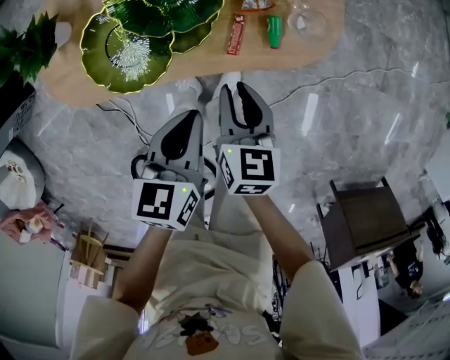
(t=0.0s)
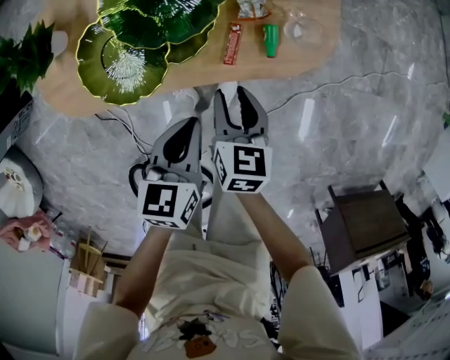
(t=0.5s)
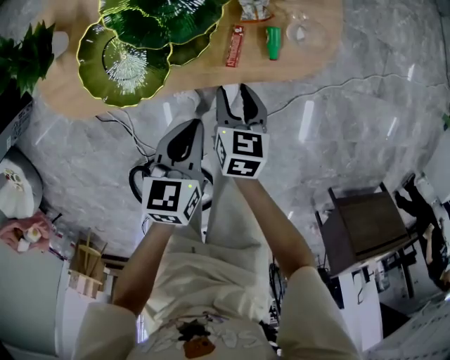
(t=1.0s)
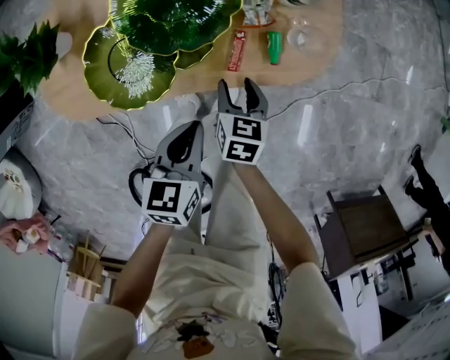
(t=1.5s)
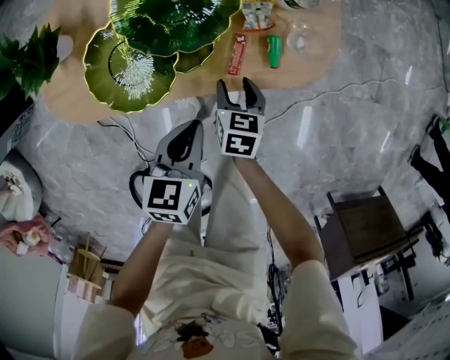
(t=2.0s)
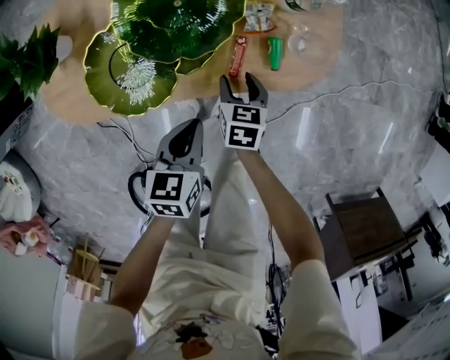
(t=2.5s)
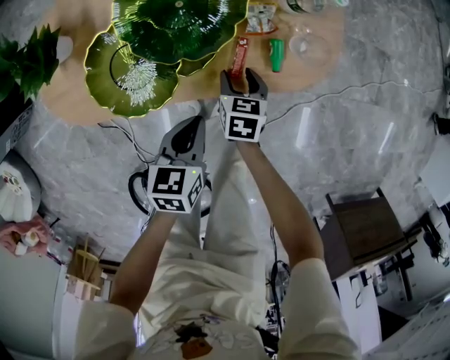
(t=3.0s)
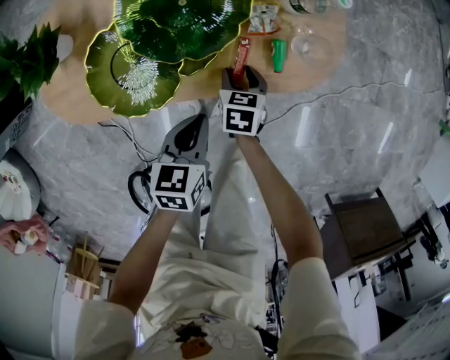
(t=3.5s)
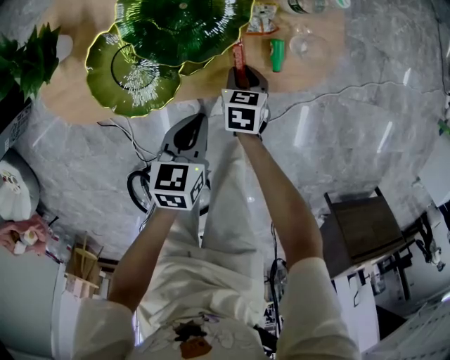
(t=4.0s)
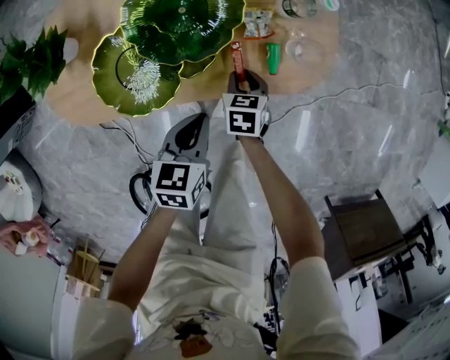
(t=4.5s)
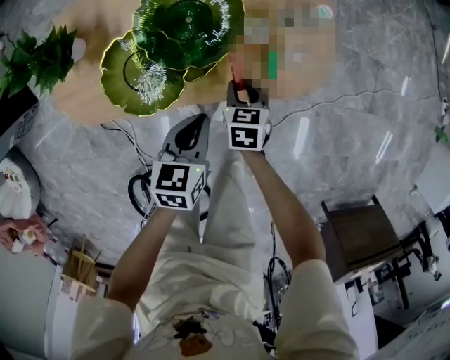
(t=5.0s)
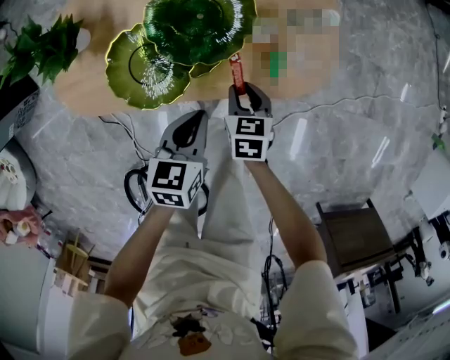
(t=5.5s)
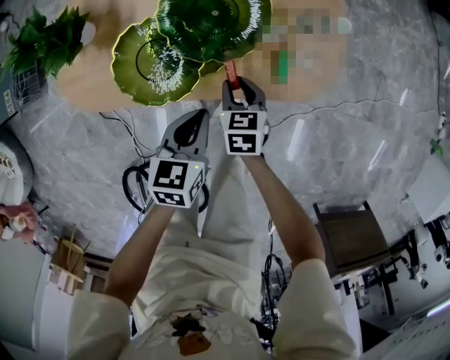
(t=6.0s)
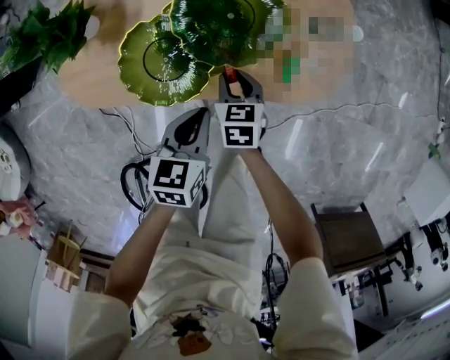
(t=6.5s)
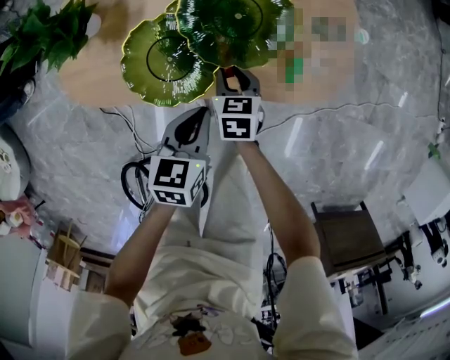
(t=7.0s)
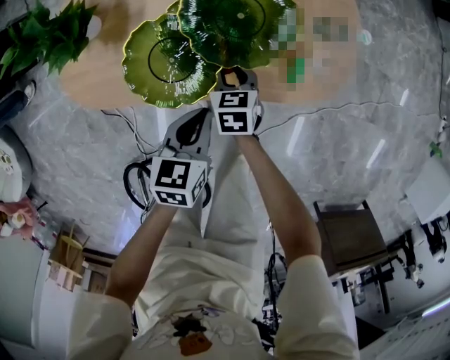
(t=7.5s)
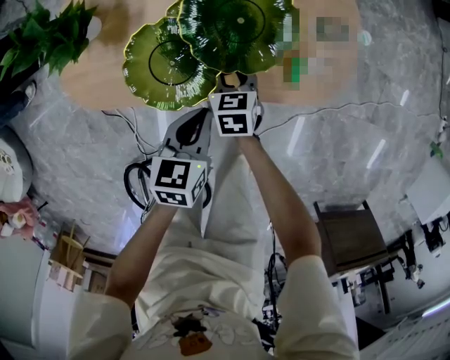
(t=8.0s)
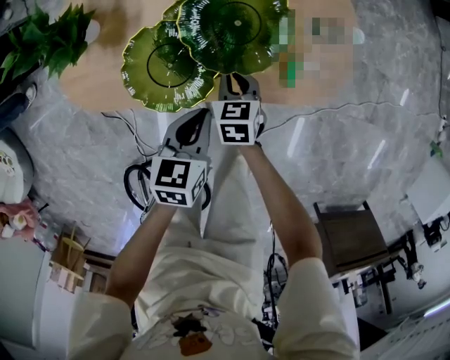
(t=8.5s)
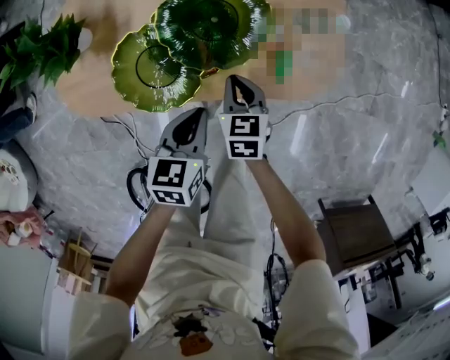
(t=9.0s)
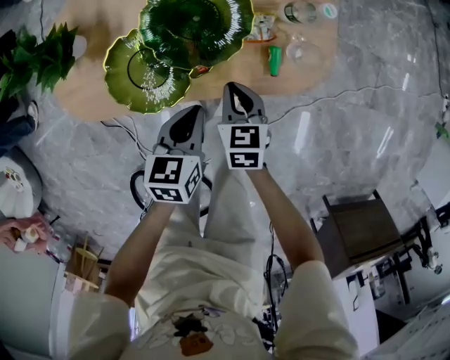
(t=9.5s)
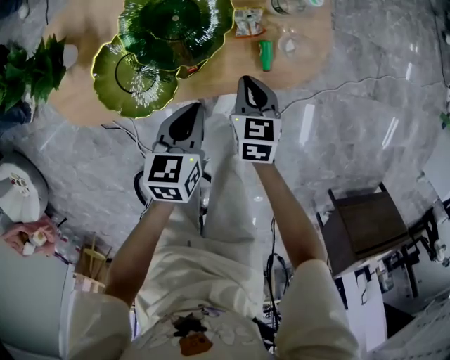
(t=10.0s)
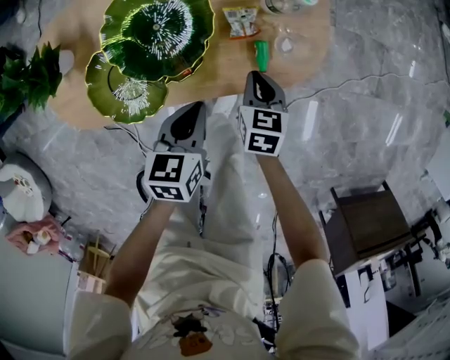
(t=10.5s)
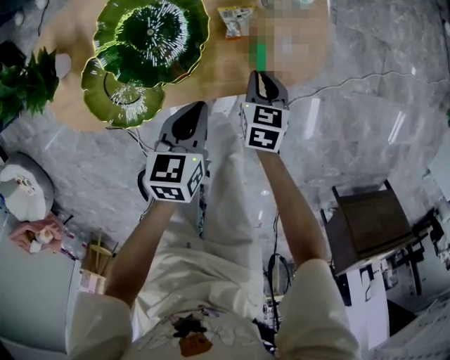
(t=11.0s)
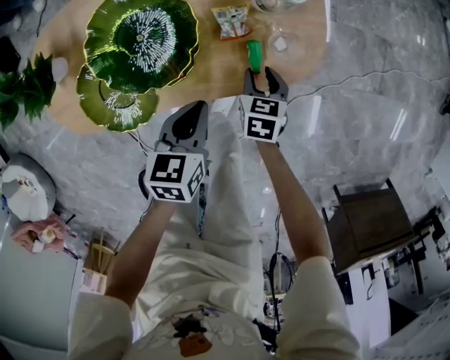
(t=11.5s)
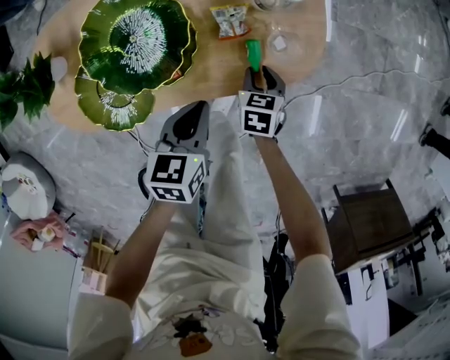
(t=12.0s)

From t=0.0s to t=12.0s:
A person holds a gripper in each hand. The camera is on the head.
From t=0.0s to t=2.0s: The right gripper shifts approximately 15 cm downward, and opens its fingers. Meanwhile the left gripper is displaced downward by roughly 5 cm.
From t=2.0s to t=4.0s: The right gripper shifts by some 5 cm, and closes.
From t=4.0s to t=6.0s: The left gripper shifts roughly 5 cm upward. Meanwhile the right gripper goes some 10 cm upward and to the left.
From t=6.0s to t=8.0s: The right gripper shifts about 5 cm to the left.
From t=8.0s to t=10.0s: The left gripper travels to the right by about 5 cm. The right gripper moves to the right, approximately 15 cm, and closes its fingers.
From t=10.0s to t=12.0s: The right gripper is displaced downward and to the right by approximately 15 cm, and opens. The left gripper is displaced to the right by approximately 5 cm.

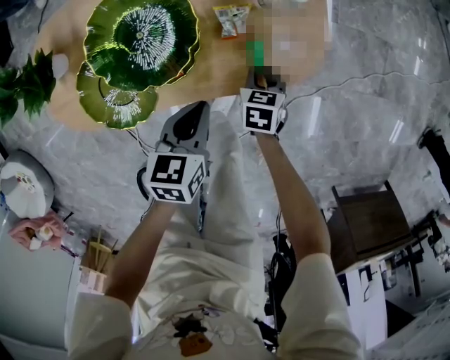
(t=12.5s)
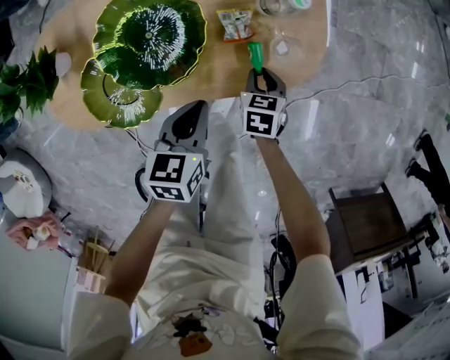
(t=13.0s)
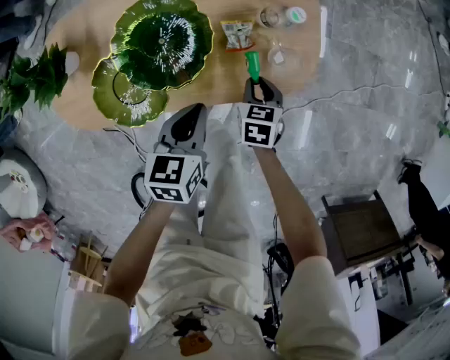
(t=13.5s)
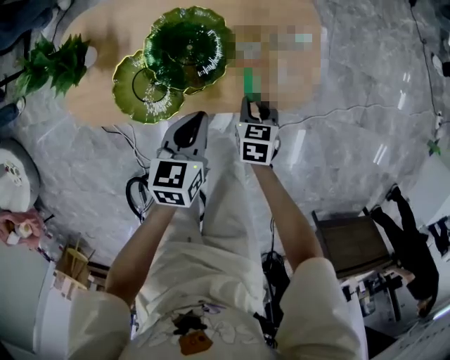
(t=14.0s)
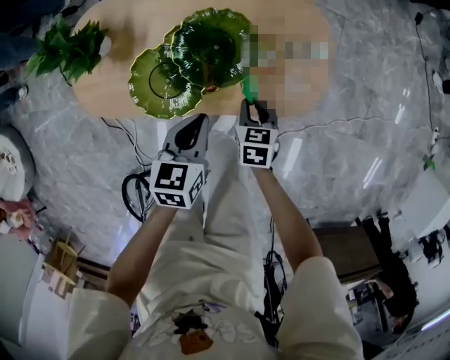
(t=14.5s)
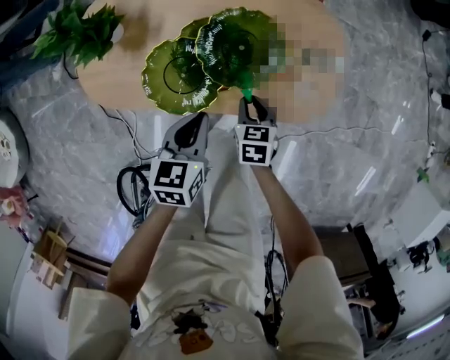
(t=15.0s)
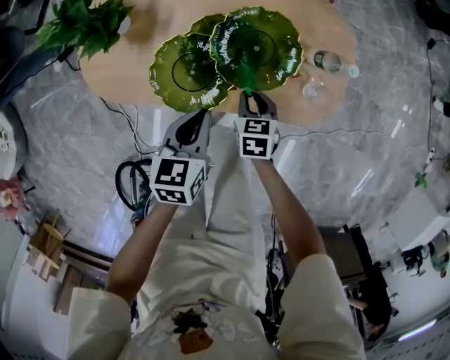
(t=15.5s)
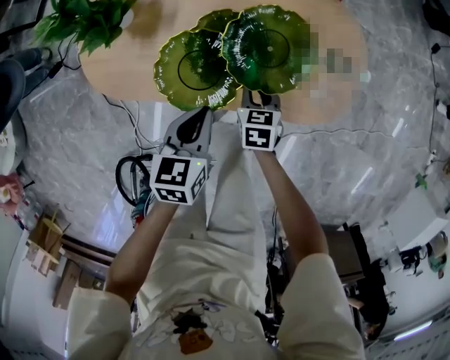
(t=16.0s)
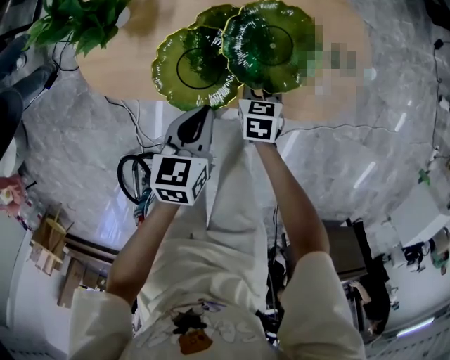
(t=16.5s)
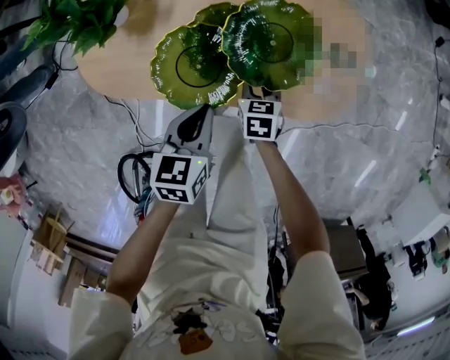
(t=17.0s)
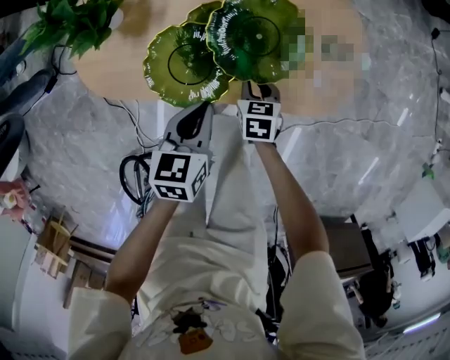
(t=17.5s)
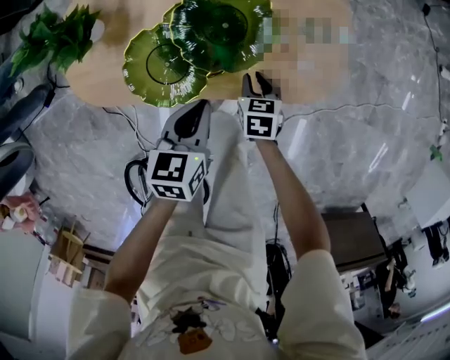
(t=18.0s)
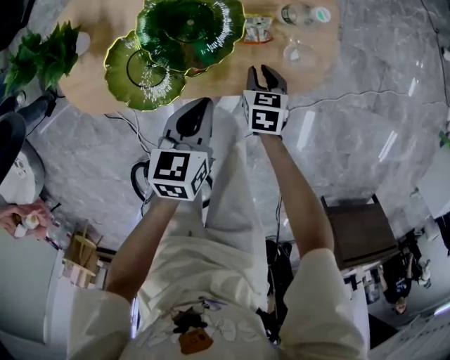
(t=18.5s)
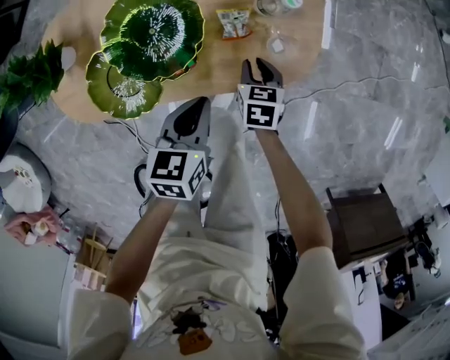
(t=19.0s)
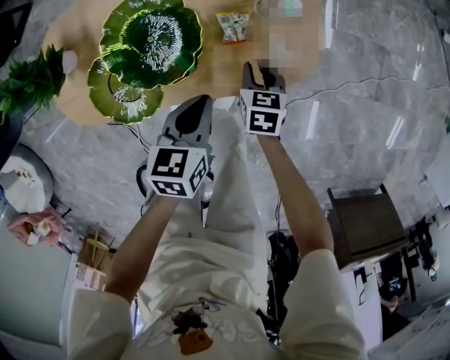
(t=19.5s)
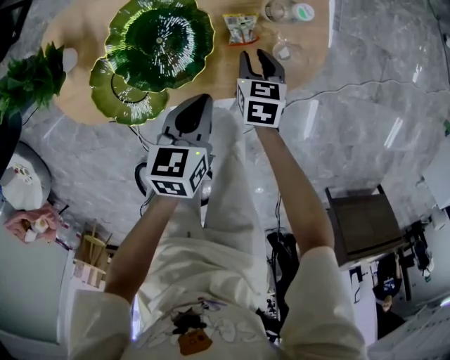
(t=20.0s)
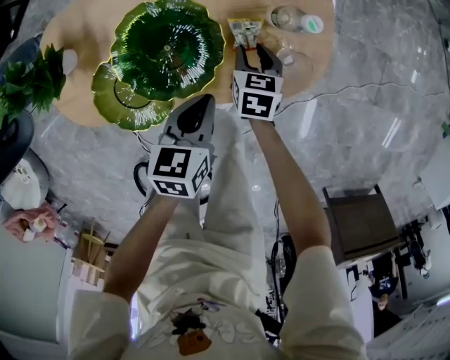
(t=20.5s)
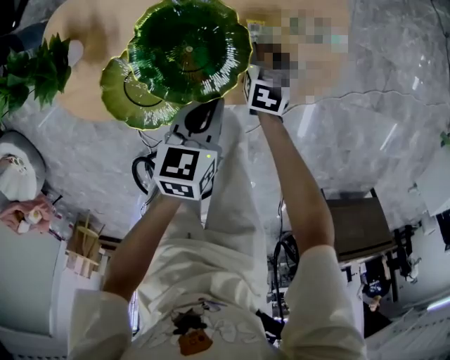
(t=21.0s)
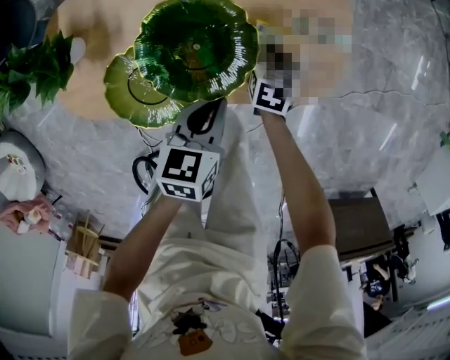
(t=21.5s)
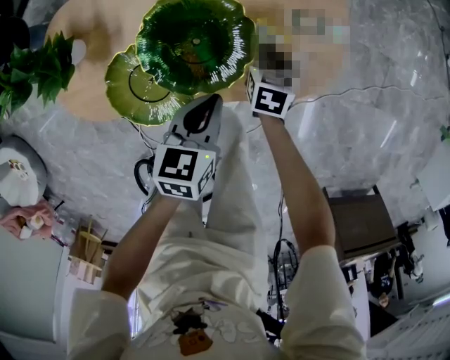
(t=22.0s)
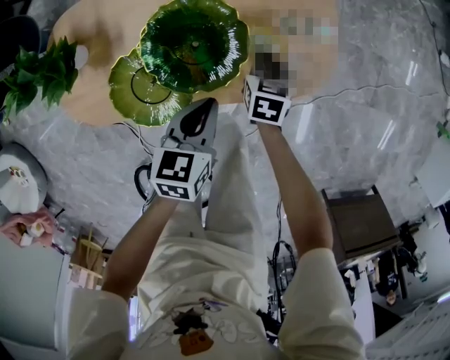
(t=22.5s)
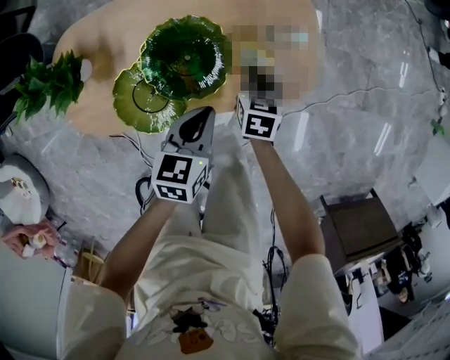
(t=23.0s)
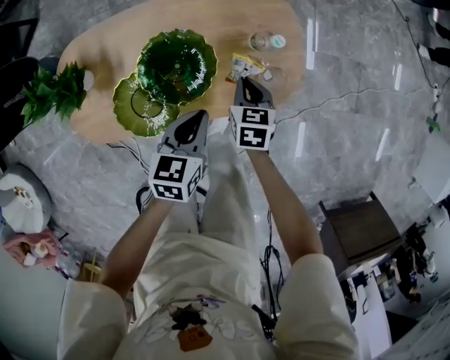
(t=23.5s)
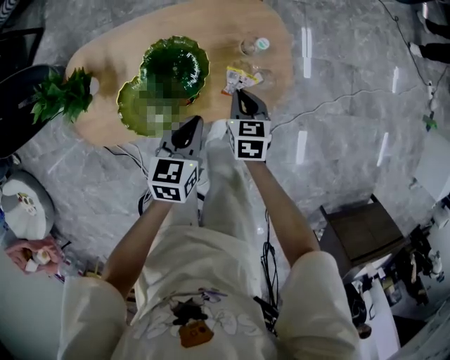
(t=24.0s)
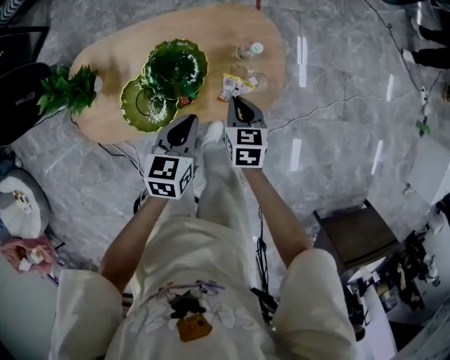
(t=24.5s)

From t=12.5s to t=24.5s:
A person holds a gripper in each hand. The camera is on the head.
From t=12.5s to t=14.5s: The grippers both shift upward and to the left by approximately 15 cm.
From t=14.5s to t=16.5s: The left gripper travels to the left by about 10 cm. Meanwhile the right gripper shifts some 10 cm to the left and downward.
From t=16.5s to t=18.5s: Both grippers move to the right, some 10 cm.
From t=18.5s to t=20.5s: The right gripper travels forward by roughly 10 cm; the left gripper shifts by approximately 5 cm.
From t=20.5s to t=22.5s: The right gripper closes up.
From t=22.5s to t=24.5s: Both grippers travel together upward, approximately 15 cm.

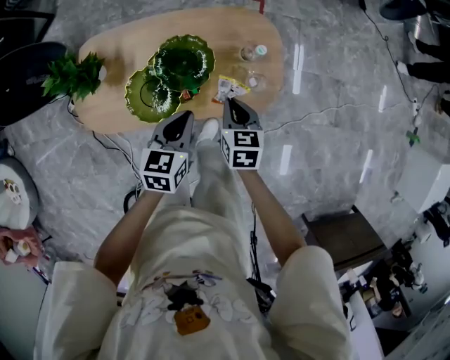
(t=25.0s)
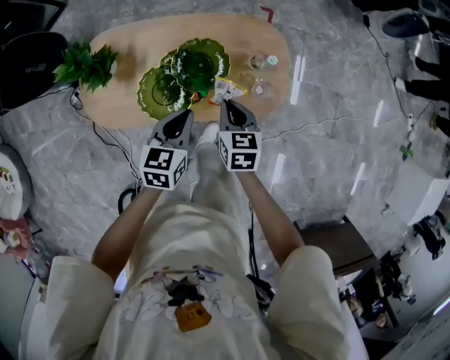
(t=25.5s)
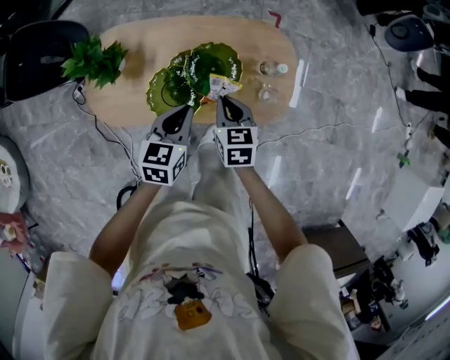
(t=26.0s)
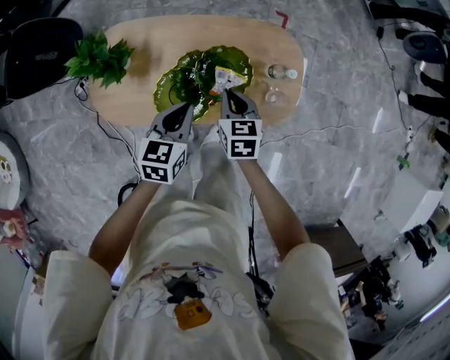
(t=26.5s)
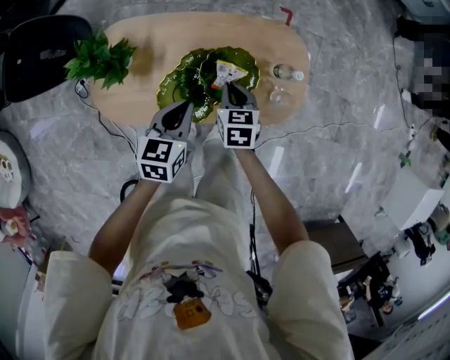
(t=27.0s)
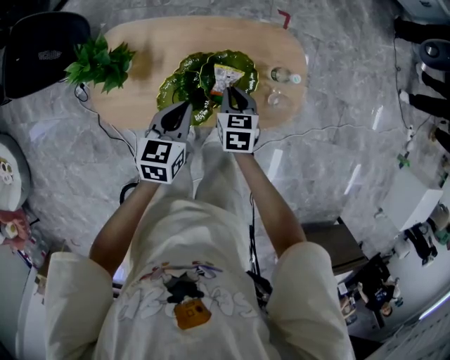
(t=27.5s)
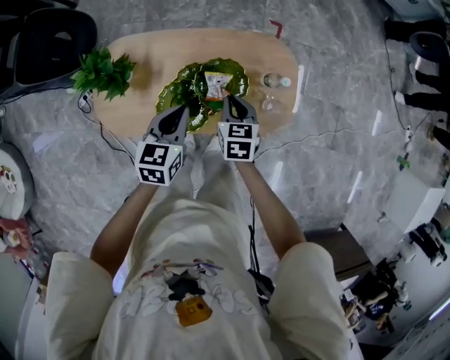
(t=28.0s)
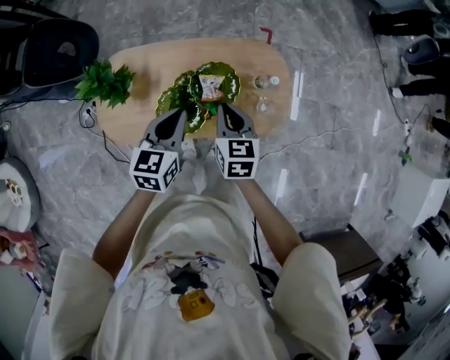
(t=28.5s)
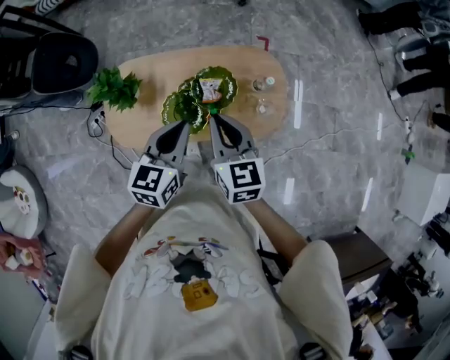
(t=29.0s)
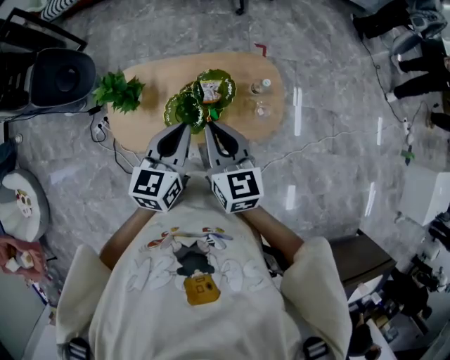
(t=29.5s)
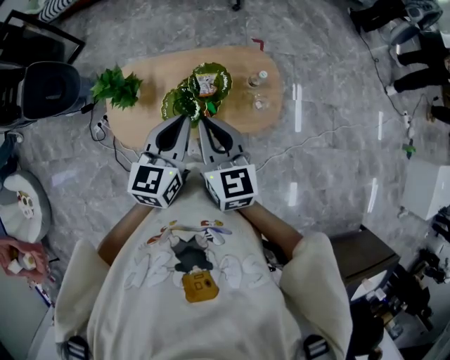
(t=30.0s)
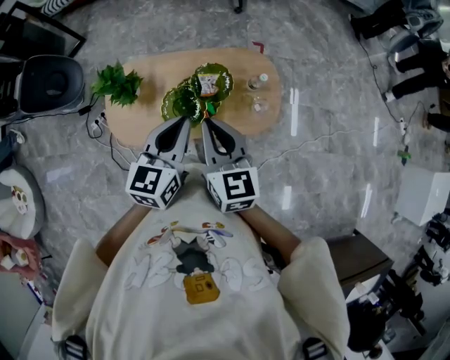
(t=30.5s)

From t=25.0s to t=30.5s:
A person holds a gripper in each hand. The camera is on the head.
From t=25.0s to t=27.0s: Both grippers travel together to the left and forward, approximately 15 cm.
From t=27.0s to t=28.5s: The two grippers go roughly 10 cm upward.
From t=28.5s to t=30.5s: The two grippers go roughly 20 cm upward and backward. The right gripper rotates approximately 20 degrees.
